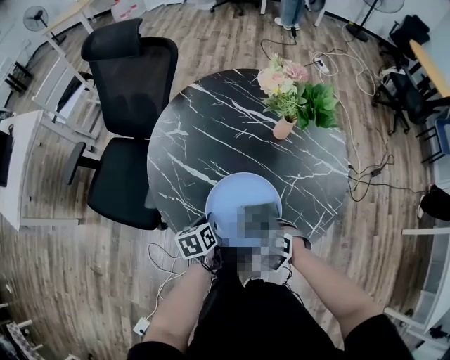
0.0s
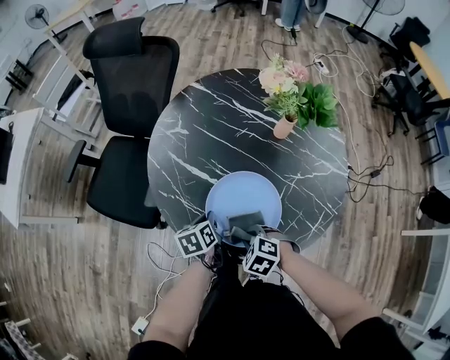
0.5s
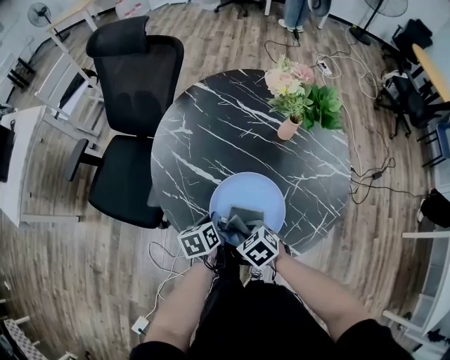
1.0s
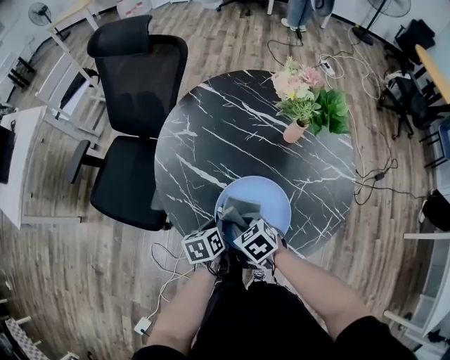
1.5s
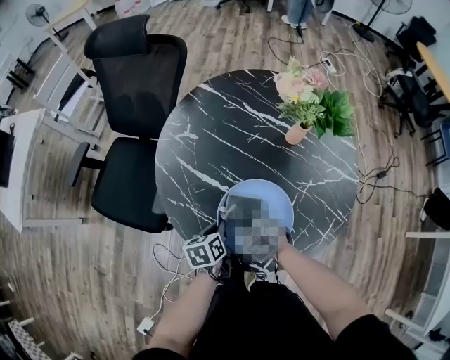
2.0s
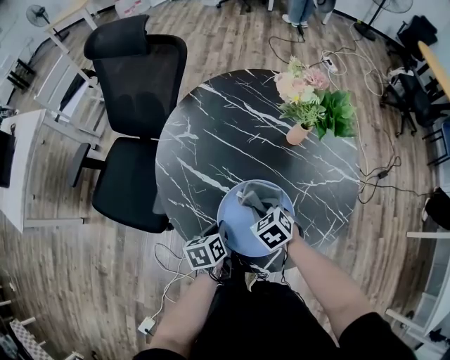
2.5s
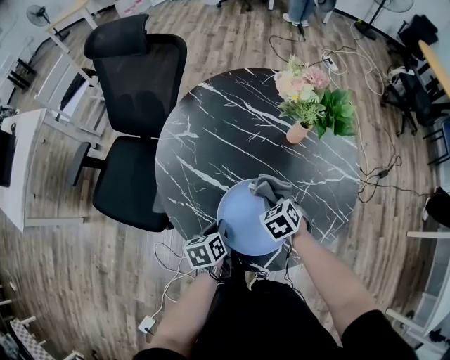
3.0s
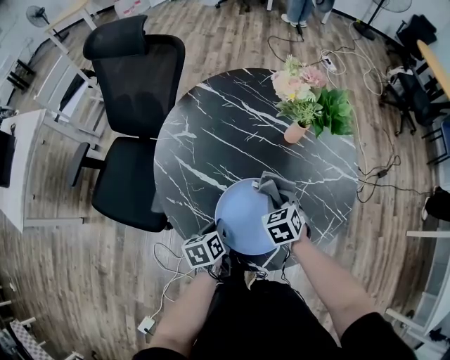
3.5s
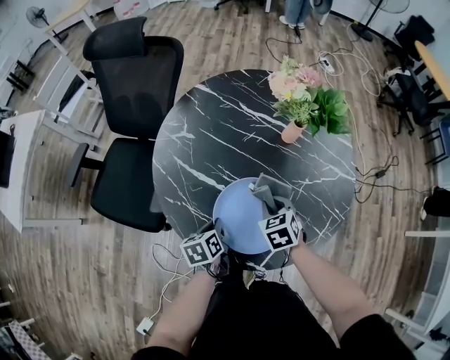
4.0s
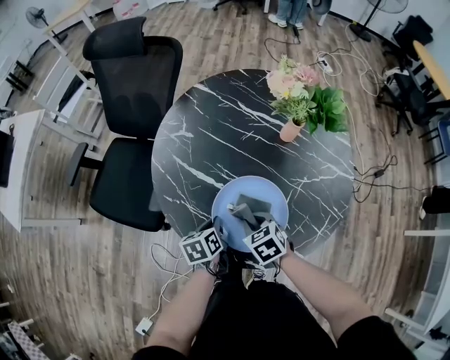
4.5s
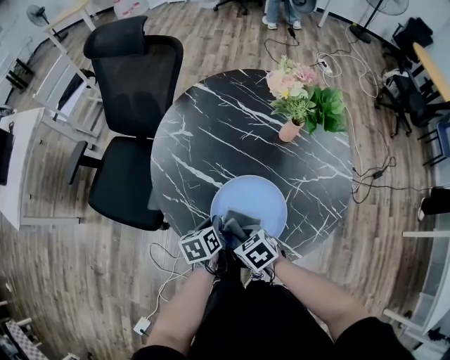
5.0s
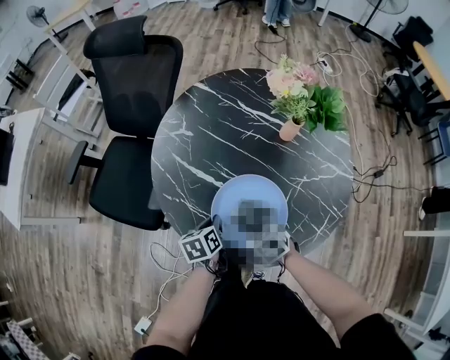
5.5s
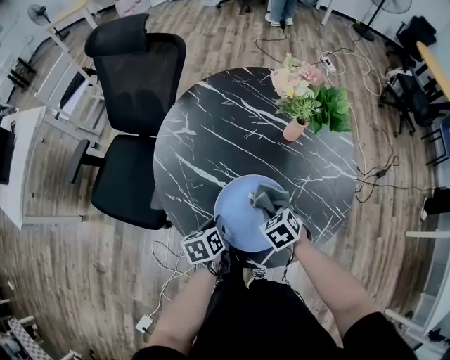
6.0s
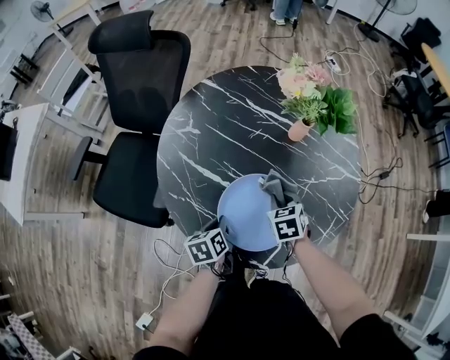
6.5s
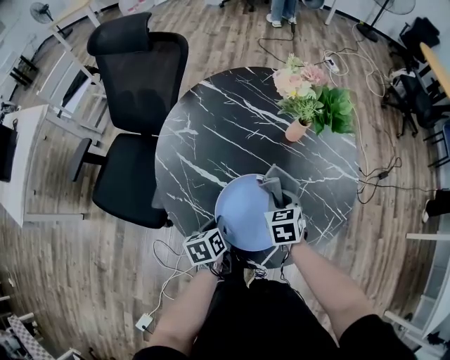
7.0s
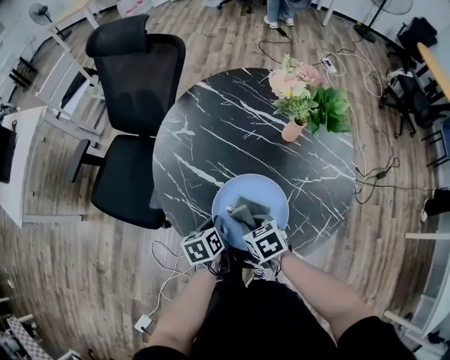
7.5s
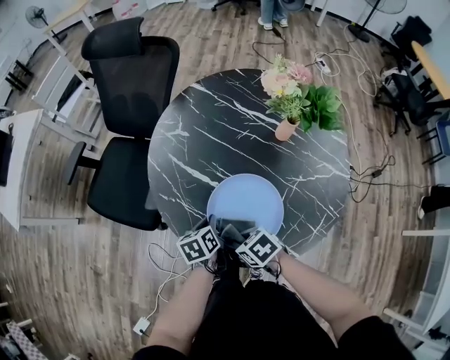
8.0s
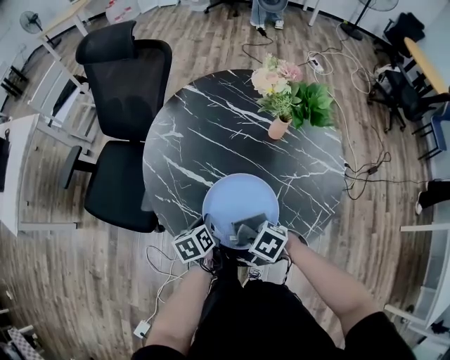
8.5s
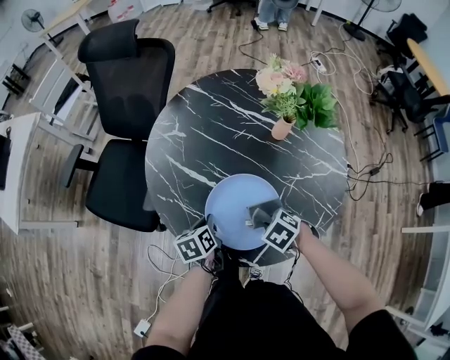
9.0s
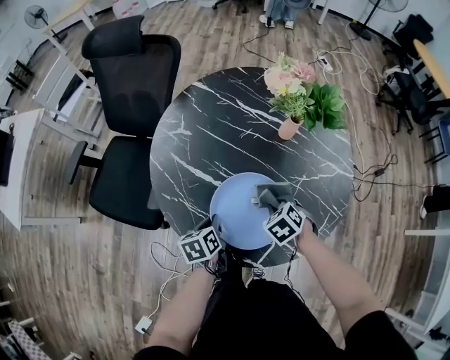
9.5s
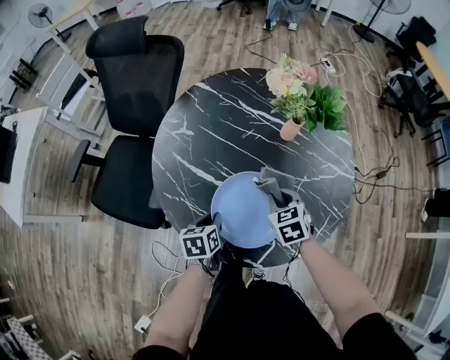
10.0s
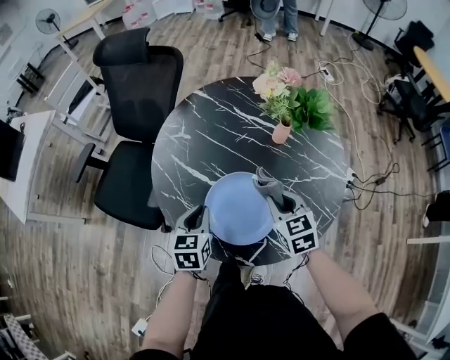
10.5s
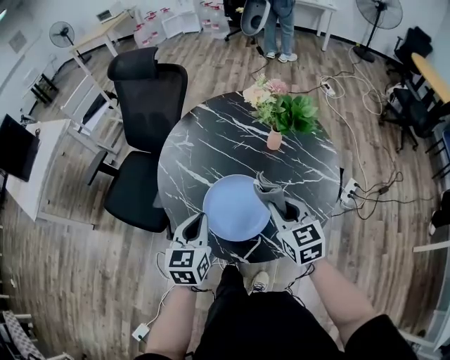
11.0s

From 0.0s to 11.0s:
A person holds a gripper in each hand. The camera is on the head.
From 0.0s to 2.0s: The right gripper is displaced forward and to the left by some 10 cm.
From 2.0s to 3.5s: The right gripper goes roughly 15 cm to the right and forward, and changes its angle by roughly 30 degrees.
From 3.5s to 5.5s: The right gripper ends up approximately 15 cm from where it was, and turns by approximately 20 degrees.
From 5.5s to 7.5s: The right gripper travels forward and back again, some 10 cm each way.
From 7.5s to 9.0s: The right gripper ends up some 10 cm from where it was, and changes its angle by some 30 degrees.
From 9.0s to 11.0s: Both grippers move upward, some 20 cm. The right gripper tips its fingers upward by approximately 50 degrees. Meanwhile the left gripper rotates about 40 degrees.

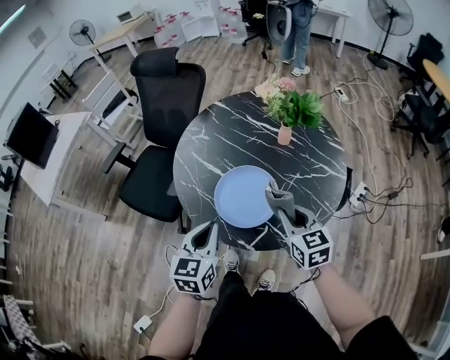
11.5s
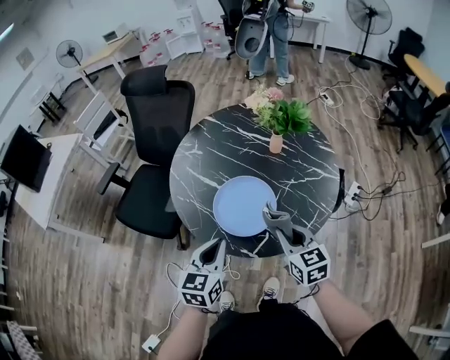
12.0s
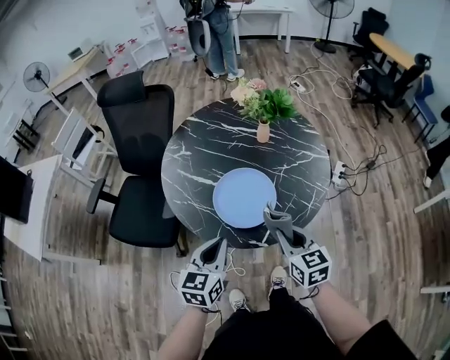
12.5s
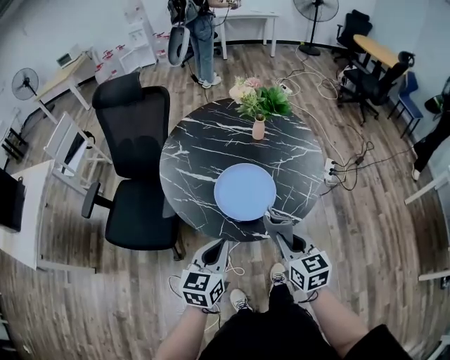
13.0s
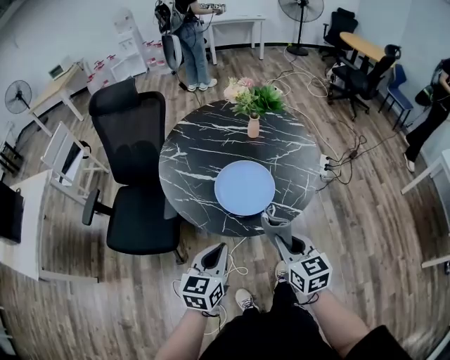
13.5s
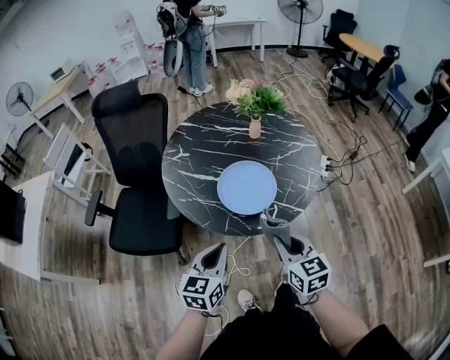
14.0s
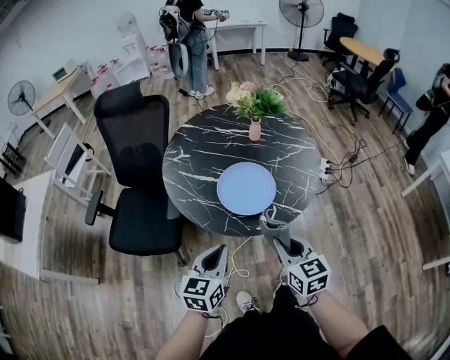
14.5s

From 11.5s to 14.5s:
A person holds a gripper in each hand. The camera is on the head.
From 11.5s to 13.0s: The left gripper shifts roughly 10 cm backward and to the left, and swivels approximately 20 degrees. The right gripper shifts some 15 cm backward and to the left, and rotates some 20 degrees.
From 13.0s to 14.5s: The left gripper changes place by some 5 cm, while the right gripper goes approximately 5 cm backward.

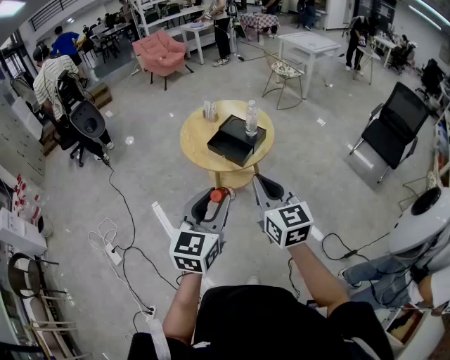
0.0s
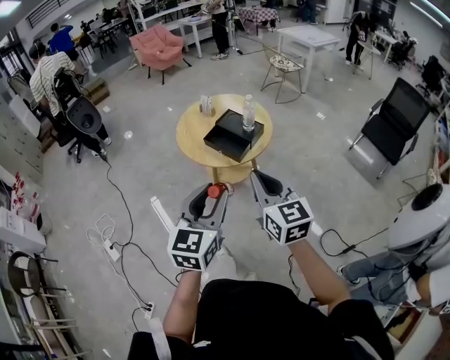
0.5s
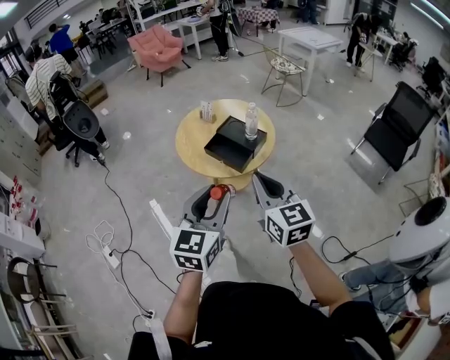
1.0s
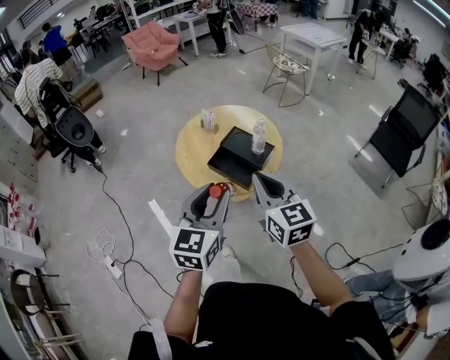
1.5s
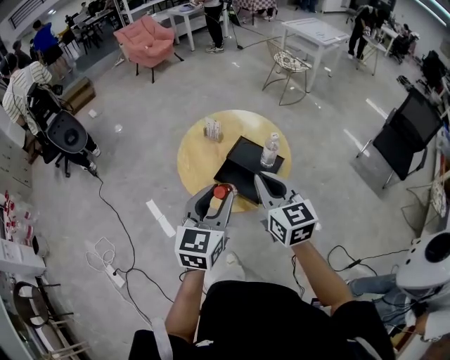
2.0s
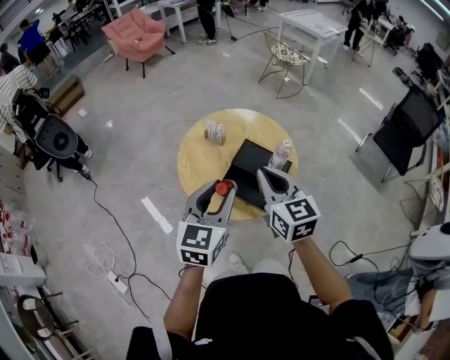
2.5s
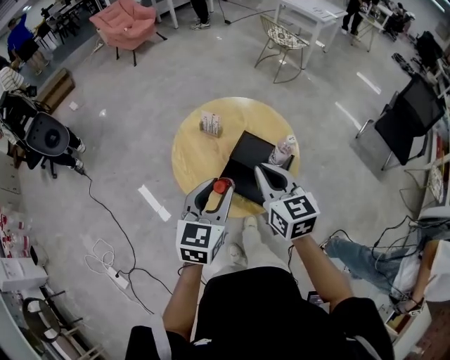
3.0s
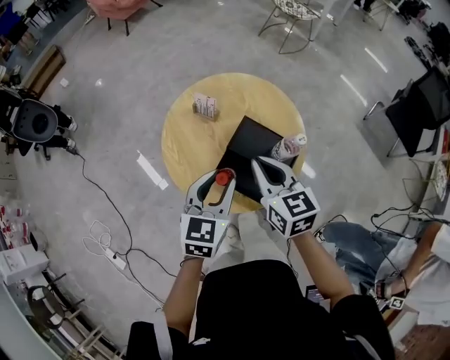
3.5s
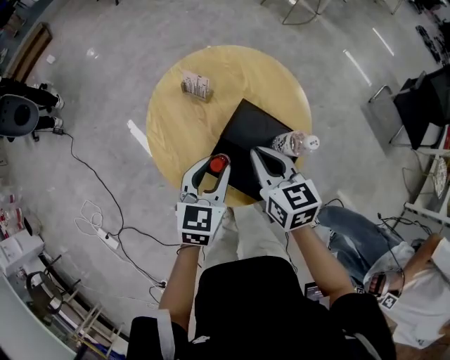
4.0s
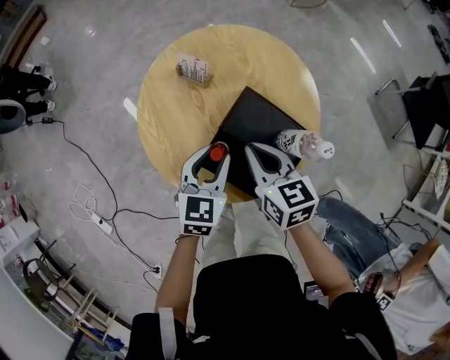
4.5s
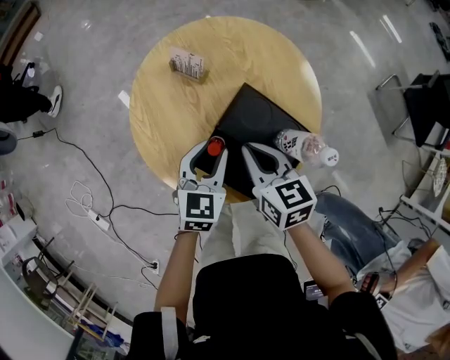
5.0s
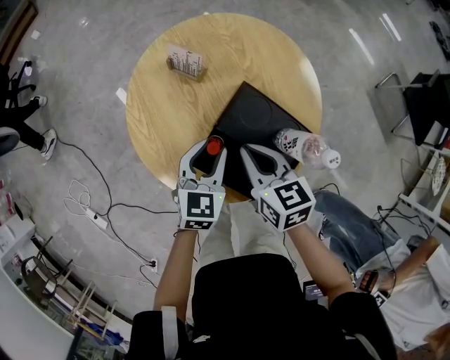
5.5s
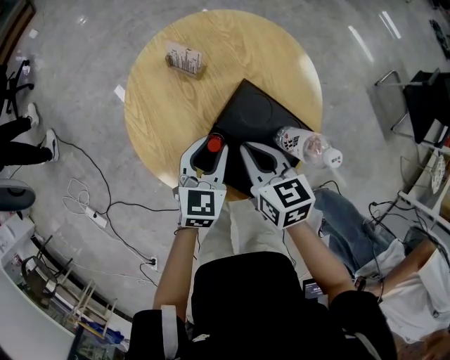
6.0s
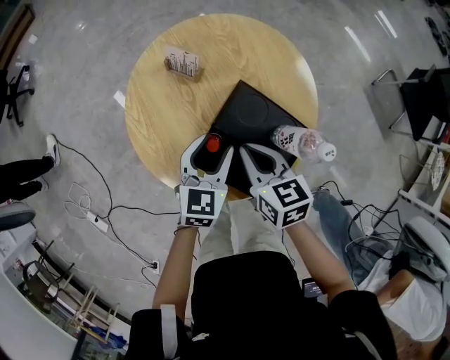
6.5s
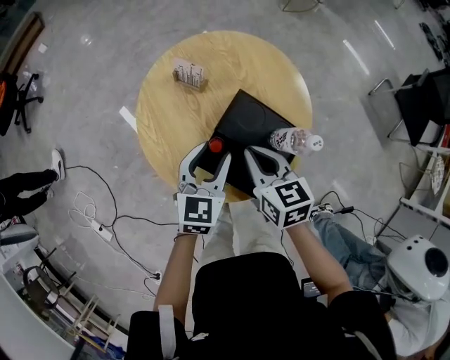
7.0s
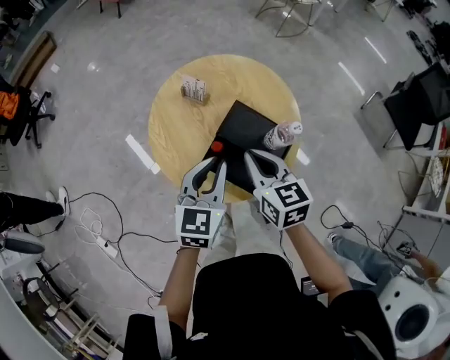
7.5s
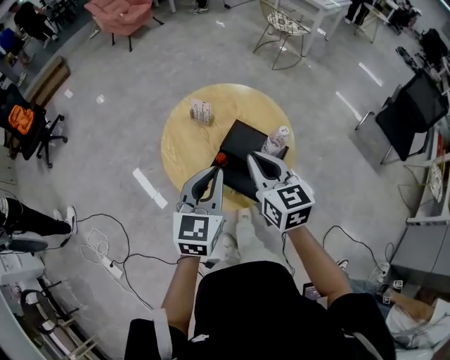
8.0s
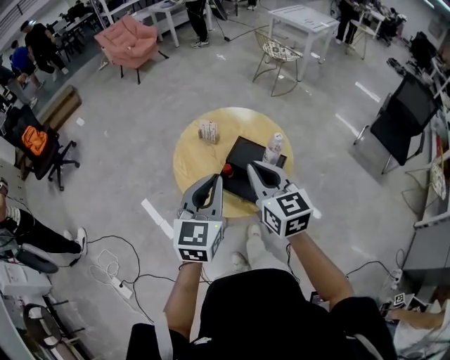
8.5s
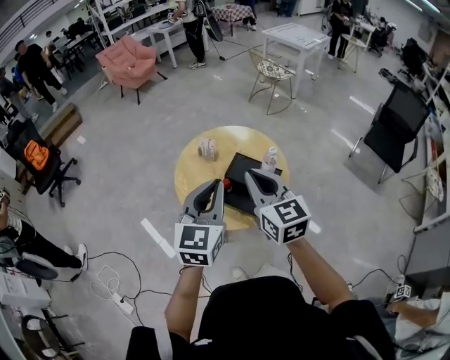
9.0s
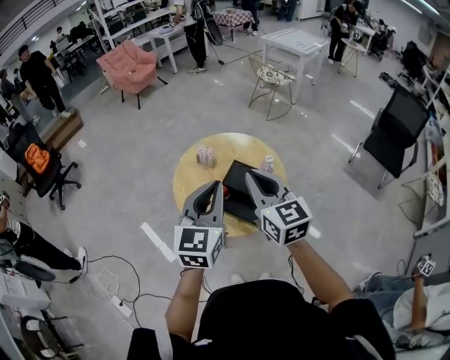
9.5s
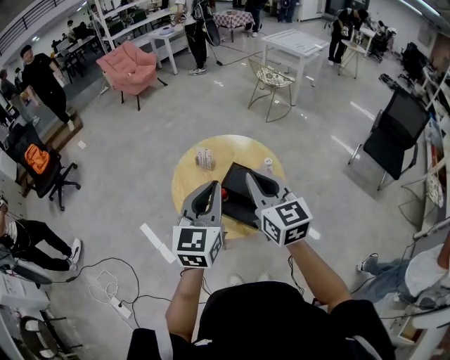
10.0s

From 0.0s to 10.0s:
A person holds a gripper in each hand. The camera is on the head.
From 0.0s to 2.0s: Both grippers move forward, roughly 30 cm.
From 2.0s to 4.0s: The left gripper heads downward and forward, covering approximately 30 cm. Meanwhile the right gripper travels forward and downward by roughly 30 cm, and changes its angle by roughly 20 degrees.
From 4.0s to 6.0s: Both grippers move downward, some 10 cm.
From 6.0s to 8.0s: The left gripper goes roughly 30 cm upward and backward, and closes, while the right gripper moves upward, approximately 20 cm, and swivels some 20 degrees.
From 8.0s to 10.0s: The right gripper goes some 15 cm upward and backward, while the left gripper moves upward, roughly 15 cm.

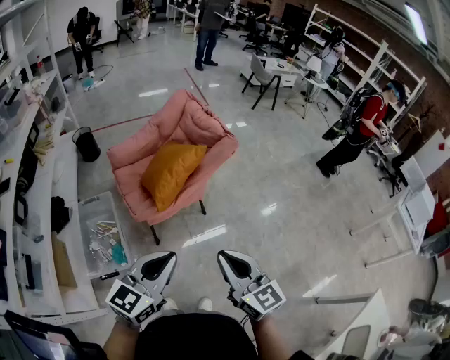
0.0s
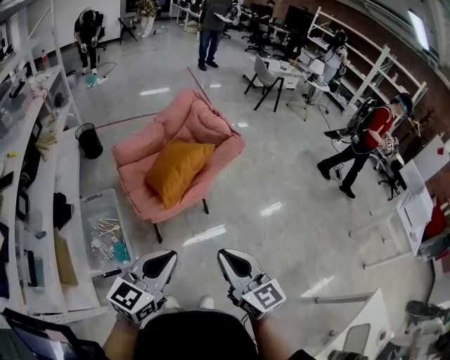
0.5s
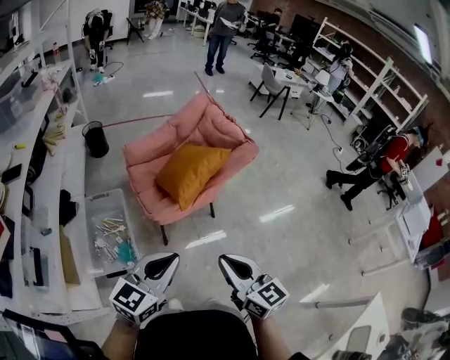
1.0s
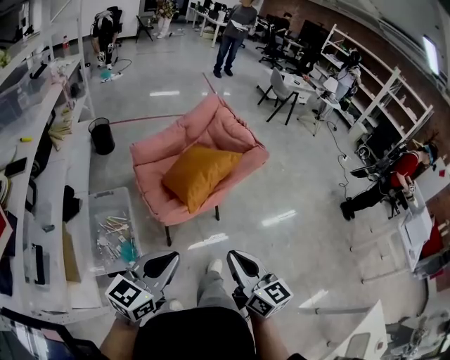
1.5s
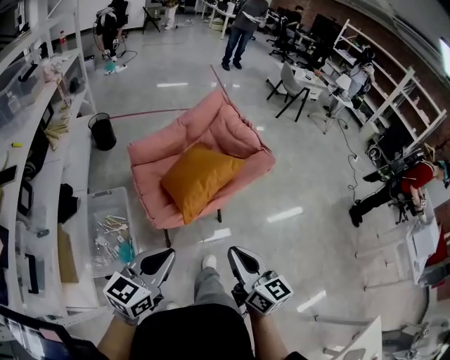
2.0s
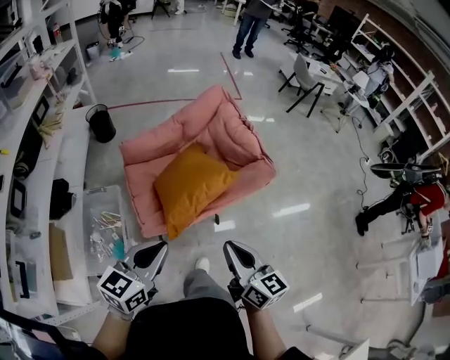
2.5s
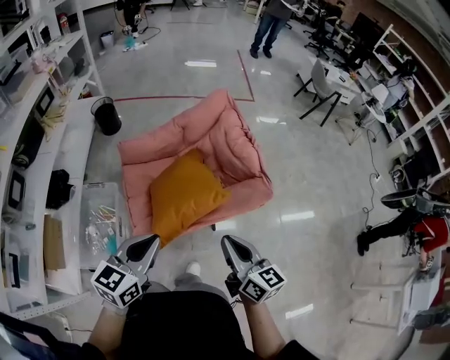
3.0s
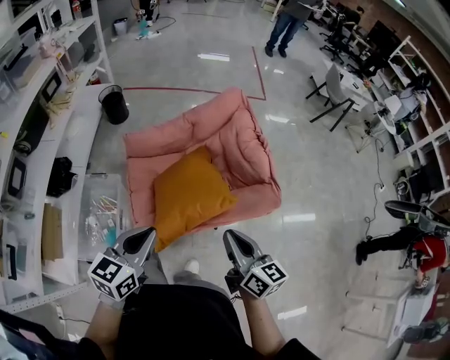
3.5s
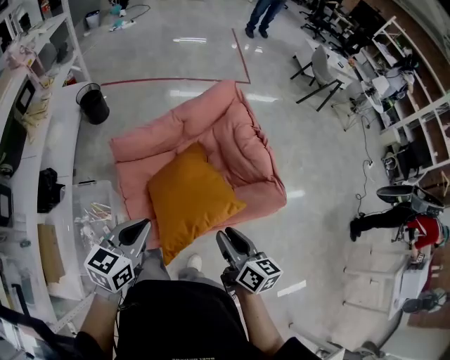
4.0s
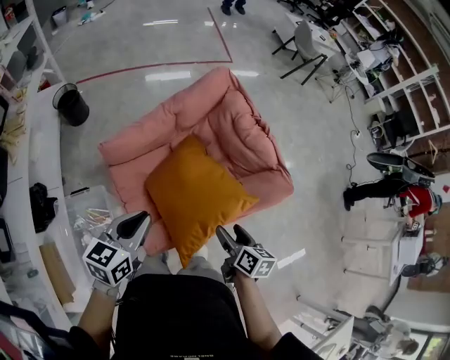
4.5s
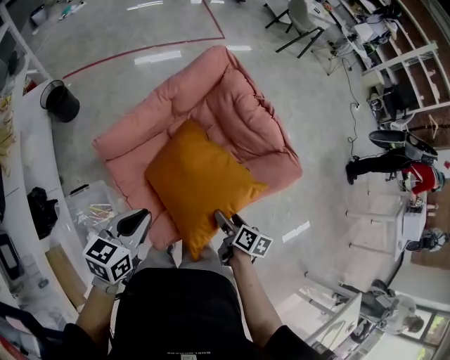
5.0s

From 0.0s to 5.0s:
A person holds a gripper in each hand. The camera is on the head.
From 0.0s to 2.5s: The two grippers go approximately 25 cm forward.
From 2.5s to 5.0s: The right gripper shifts approximately 25 cm downward, points its fingers approximately 40 degrees further downward, and opens. The left gripper moves roughly 35 cm, and turns by some 20 degrees.
